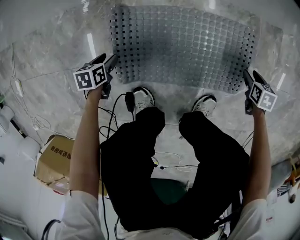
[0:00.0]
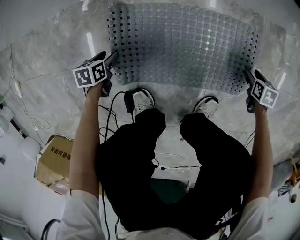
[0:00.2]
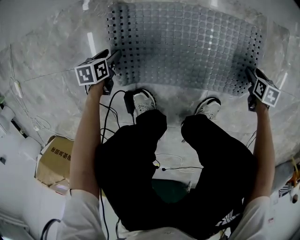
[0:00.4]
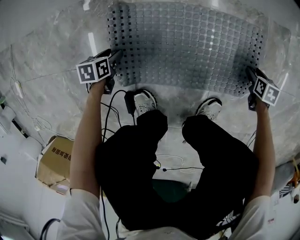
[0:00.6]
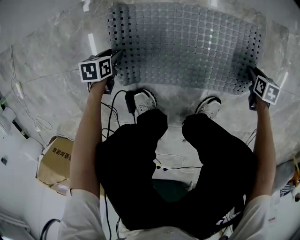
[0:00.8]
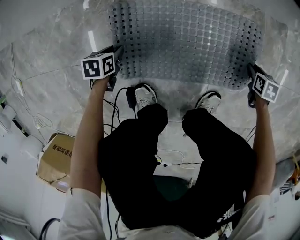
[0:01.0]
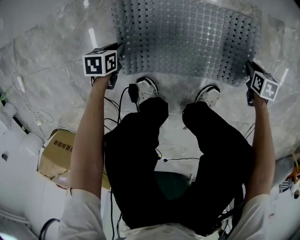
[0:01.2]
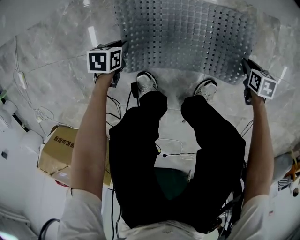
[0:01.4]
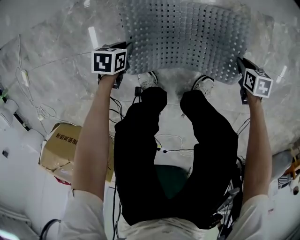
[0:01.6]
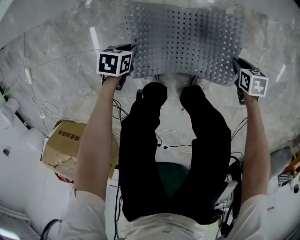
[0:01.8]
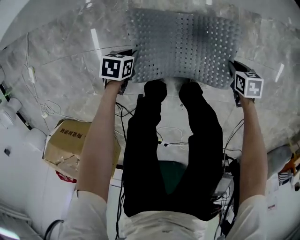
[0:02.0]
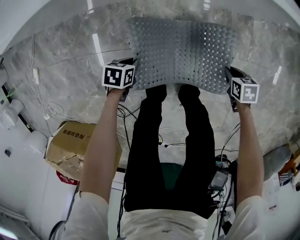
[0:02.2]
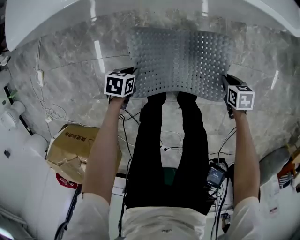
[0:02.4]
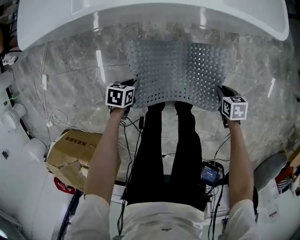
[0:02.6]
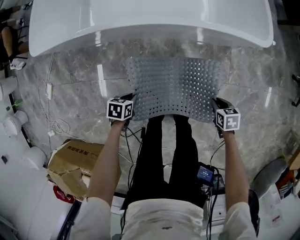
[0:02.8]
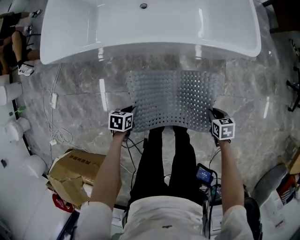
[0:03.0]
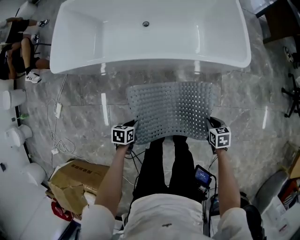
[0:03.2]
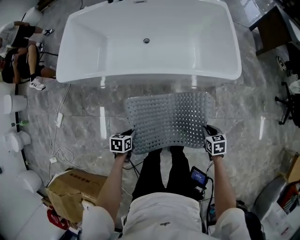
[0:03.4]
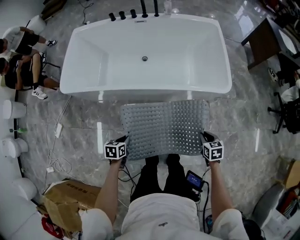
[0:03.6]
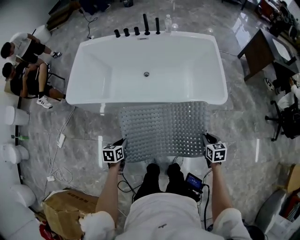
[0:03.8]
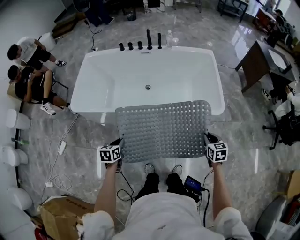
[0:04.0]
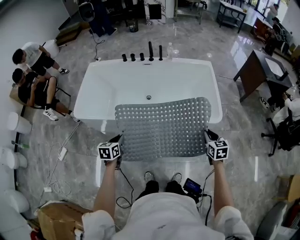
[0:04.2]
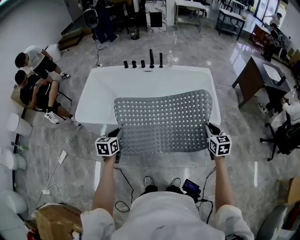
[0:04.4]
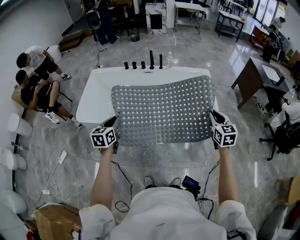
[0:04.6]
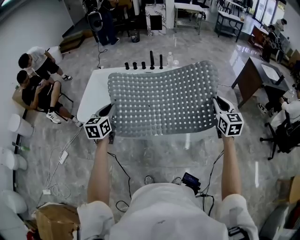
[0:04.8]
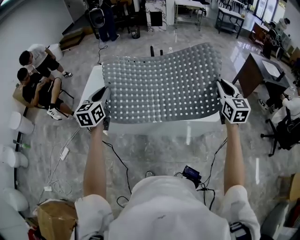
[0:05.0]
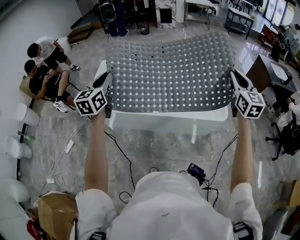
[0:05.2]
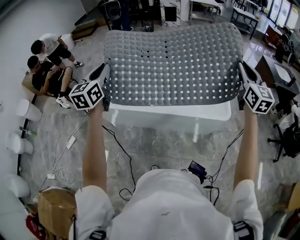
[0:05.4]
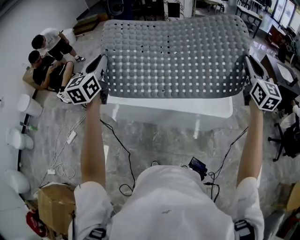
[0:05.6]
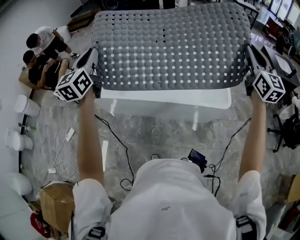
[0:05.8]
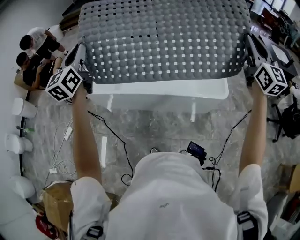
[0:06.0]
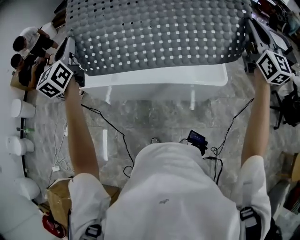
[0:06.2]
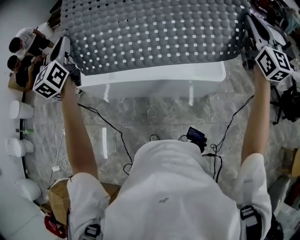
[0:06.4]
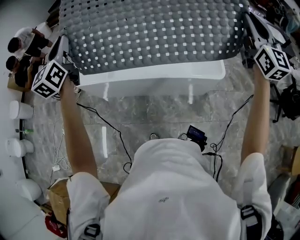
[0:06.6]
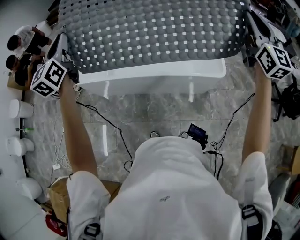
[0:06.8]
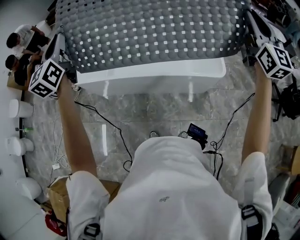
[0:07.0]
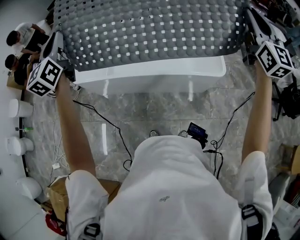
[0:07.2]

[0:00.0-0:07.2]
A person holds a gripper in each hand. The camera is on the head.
0.0 to 1.4 s: The left gripper shifts by approximately 10 cm, and closes up. The right gripper moves approximately 5 cm, and closes.
1.4 to 2.8 s: Both grippers travel together upward, some 40 cm.
2.8 to 4.4 s: The two grippers go approximately 50 cm upward. The right gripper tilts its fingers roughly 40 degrees upward; the left gripper angles its fingers upward, by some 30 degrees.
4.4 to 5.8 s: The two grippers go some 35 cm upward. The right gripper angles its fingers upward, by some 40 degrees, while the left gripper points its fingers roughly 40 degrees further upward.
5.8 to 7.2 s: The grippers stay close to where they were, moving slightly.

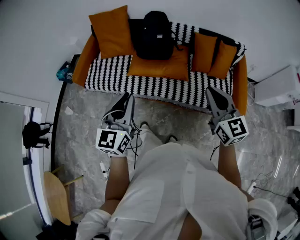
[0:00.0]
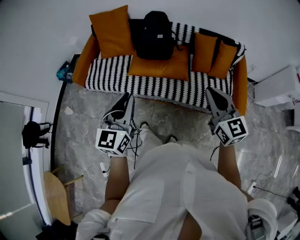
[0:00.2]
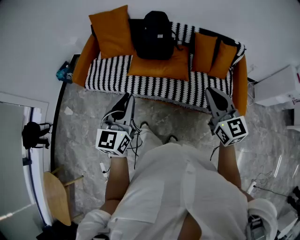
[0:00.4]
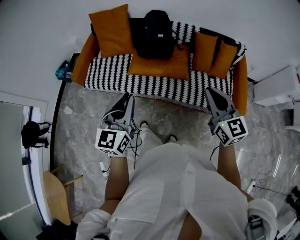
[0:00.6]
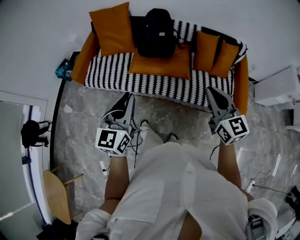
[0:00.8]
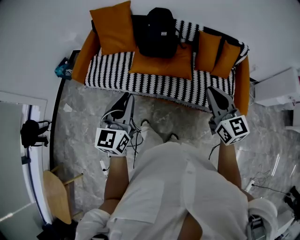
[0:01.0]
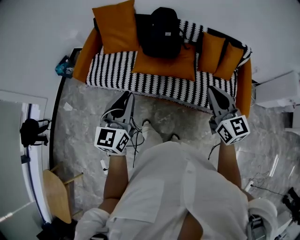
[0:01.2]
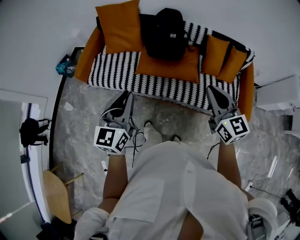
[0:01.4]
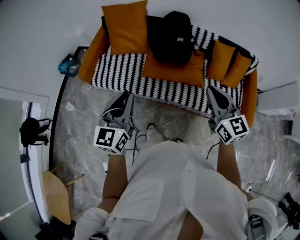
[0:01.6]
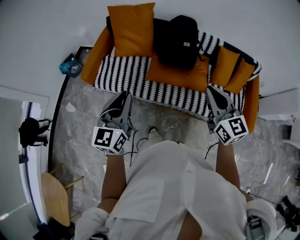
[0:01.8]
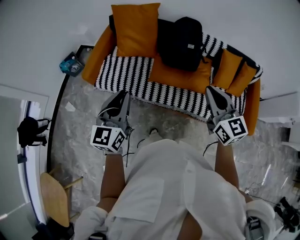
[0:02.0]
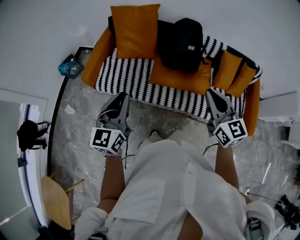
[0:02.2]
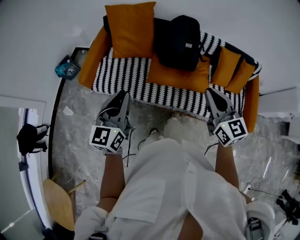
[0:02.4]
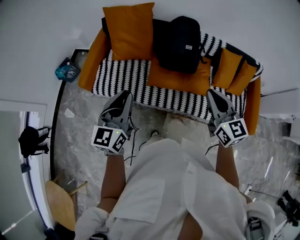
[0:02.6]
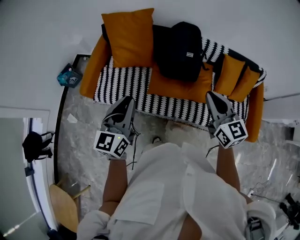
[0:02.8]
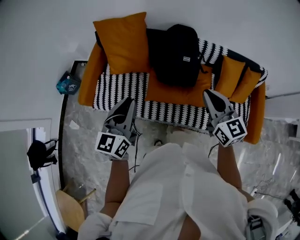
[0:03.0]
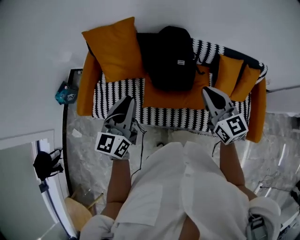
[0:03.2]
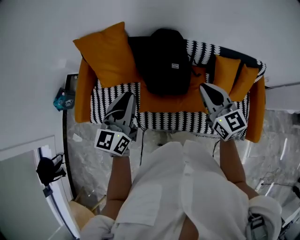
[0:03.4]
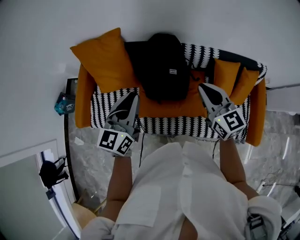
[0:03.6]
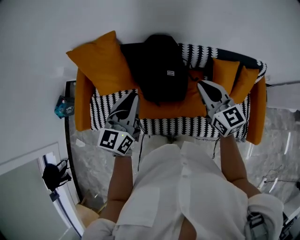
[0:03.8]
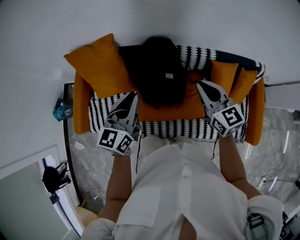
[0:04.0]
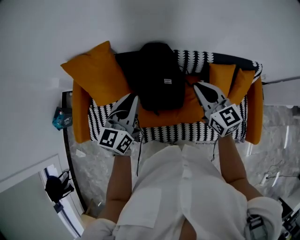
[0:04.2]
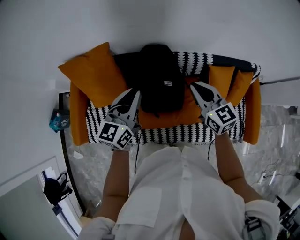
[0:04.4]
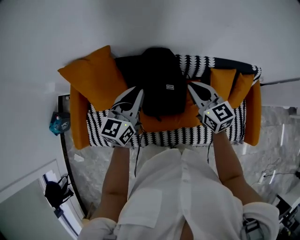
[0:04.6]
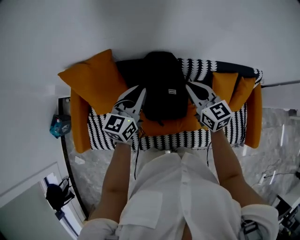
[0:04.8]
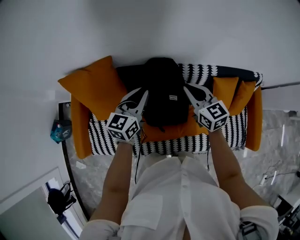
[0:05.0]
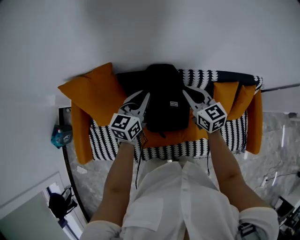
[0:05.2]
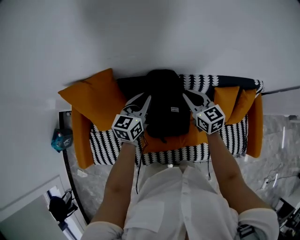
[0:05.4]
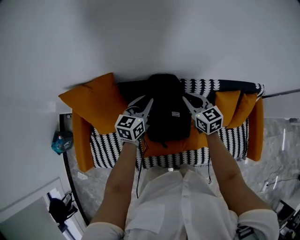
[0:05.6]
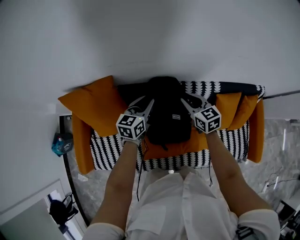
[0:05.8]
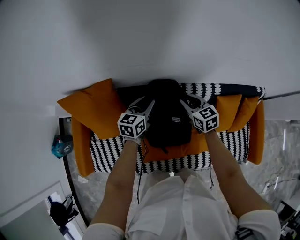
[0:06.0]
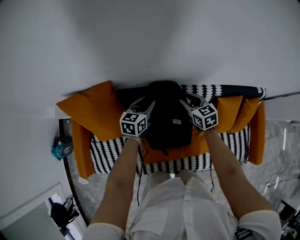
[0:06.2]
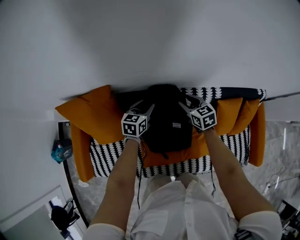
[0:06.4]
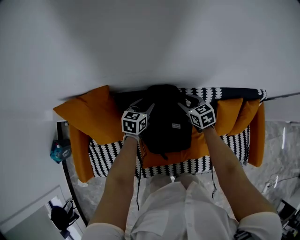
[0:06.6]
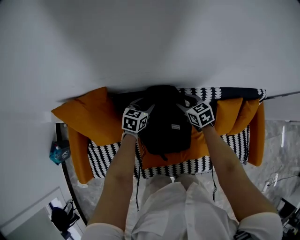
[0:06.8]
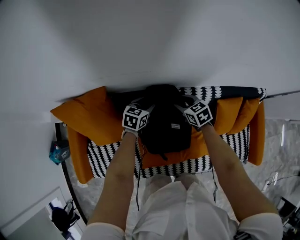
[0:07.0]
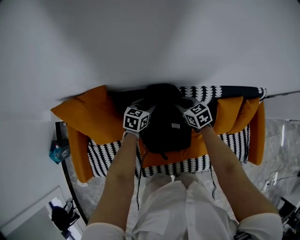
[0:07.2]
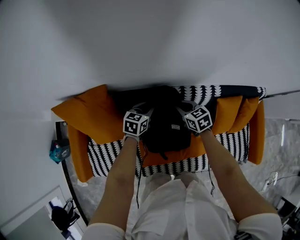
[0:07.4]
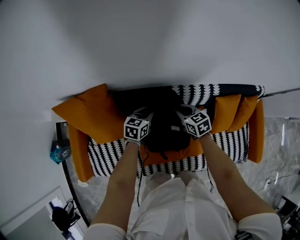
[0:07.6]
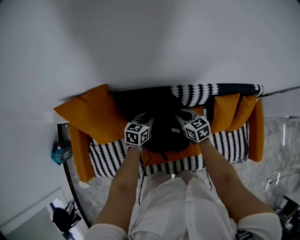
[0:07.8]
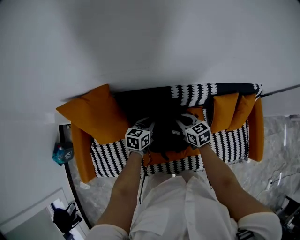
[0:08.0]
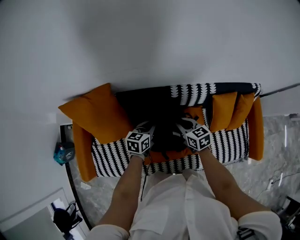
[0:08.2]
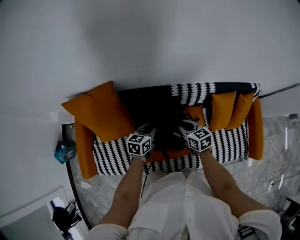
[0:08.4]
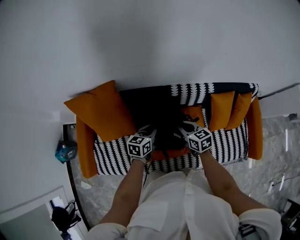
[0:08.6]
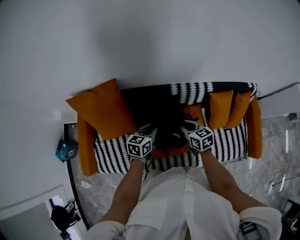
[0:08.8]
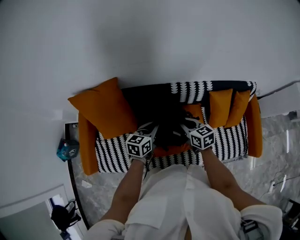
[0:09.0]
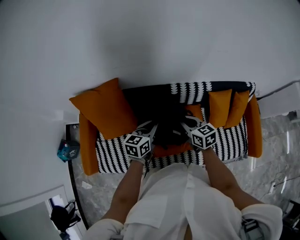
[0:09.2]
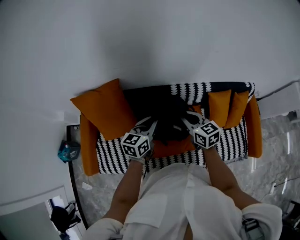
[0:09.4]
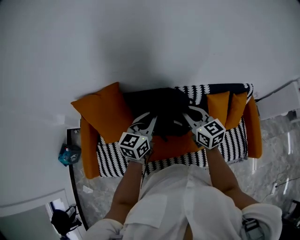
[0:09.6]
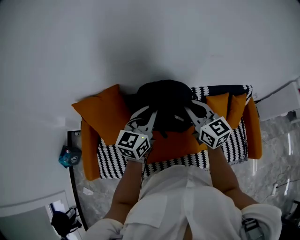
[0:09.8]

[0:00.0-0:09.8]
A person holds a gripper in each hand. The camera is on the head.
0.0 to 1.4 s: The two grippers go roughly 10 cm to the left and forward.
1.4 to 2.8 s: The grippers both shift forward and to the left by some 20 cm.
2.8 to 4.2 s: The right gripper goes about 25 cm forward. The left gripper heads forward and to the right, covering about 35 cm.
4.2 to 5.6 s: The left gripper shifts approximately 25 cm forward and downward. Meanwhile the right gripper moves forward, downward and to the left, roughly 20 cm.
5.6 to 7.0 s: The two grippers go some 15 cm downward and forward. The right gripper opens its fingers. Meanwhile the left gripper turns by about 20 degrees, and opens up.
7.0 to 8.4 s: The two grippers go approximately 15 cm backward. The left gripper closes up. Meanwhile the right gripper closes.
8.4 to 9.8 s: The grippers both shift upward by approximately 25 cm. The right gripper turns by roughly 30 degrees, while the left gripper changes its angle by approximately 30 degrees.

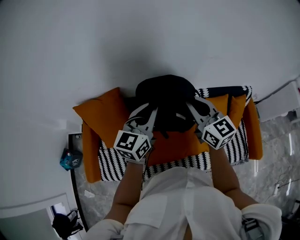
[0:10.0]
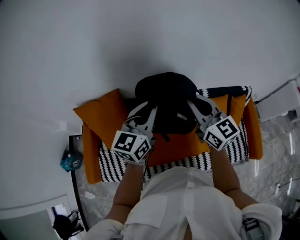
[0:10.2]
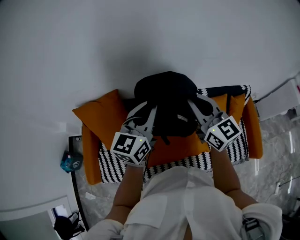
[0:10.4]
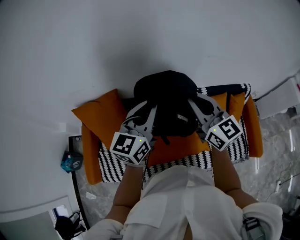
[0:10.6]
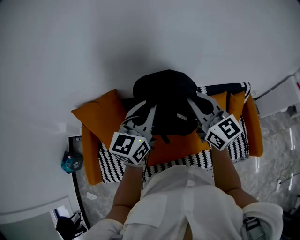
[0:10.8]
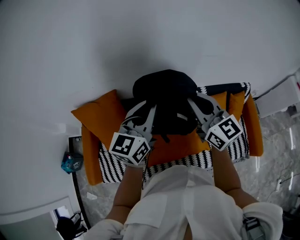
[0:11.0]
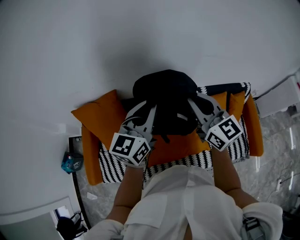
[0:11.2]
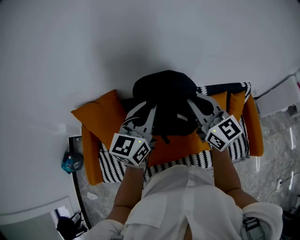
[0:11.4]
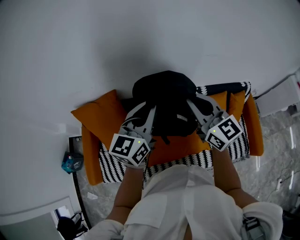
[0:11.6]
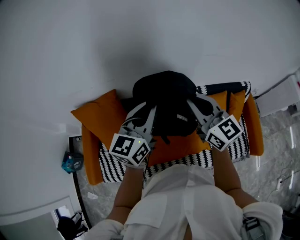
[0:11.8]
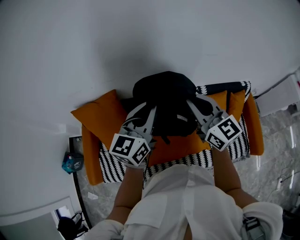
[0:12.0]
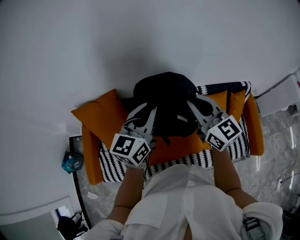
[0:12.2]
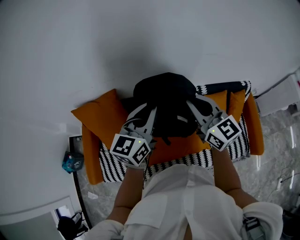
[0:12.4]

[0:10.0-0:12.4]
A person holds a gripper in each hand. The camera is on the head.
10.0 to 12.4 s: The grippers make only small movements.

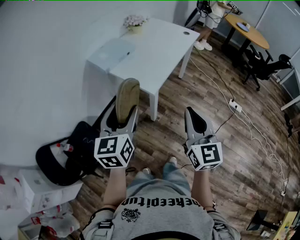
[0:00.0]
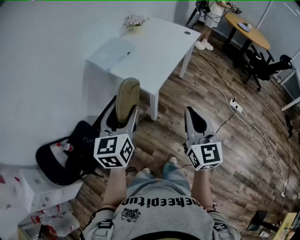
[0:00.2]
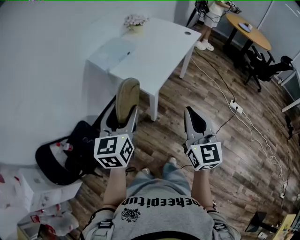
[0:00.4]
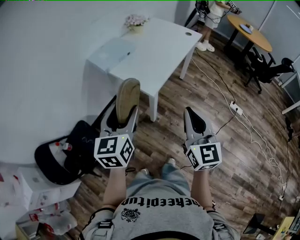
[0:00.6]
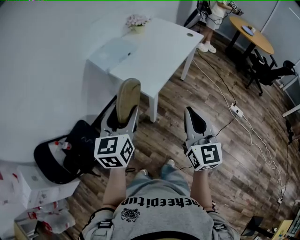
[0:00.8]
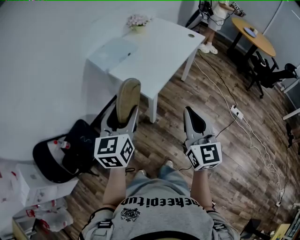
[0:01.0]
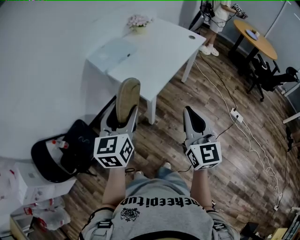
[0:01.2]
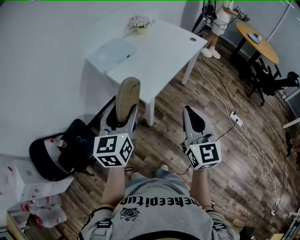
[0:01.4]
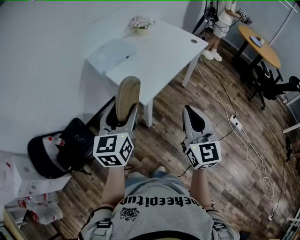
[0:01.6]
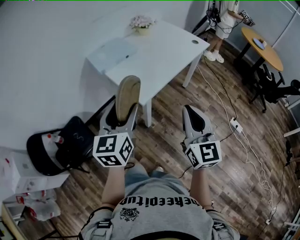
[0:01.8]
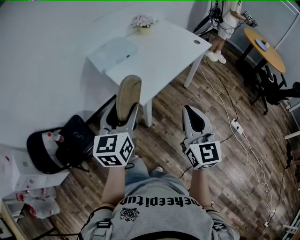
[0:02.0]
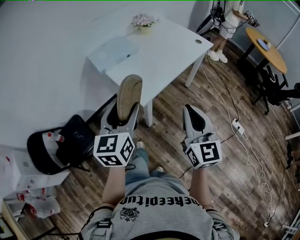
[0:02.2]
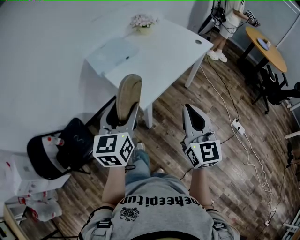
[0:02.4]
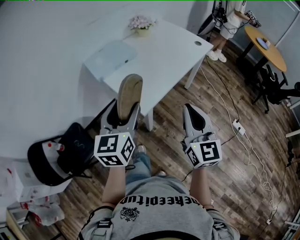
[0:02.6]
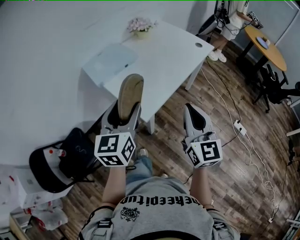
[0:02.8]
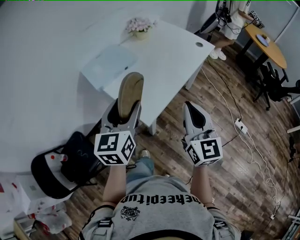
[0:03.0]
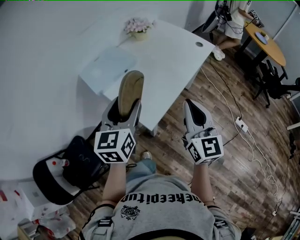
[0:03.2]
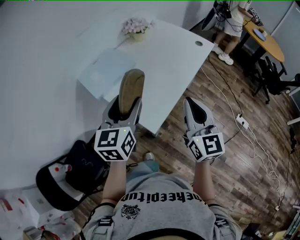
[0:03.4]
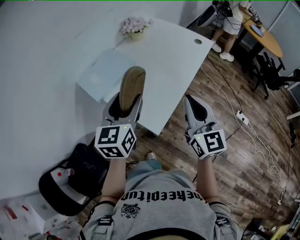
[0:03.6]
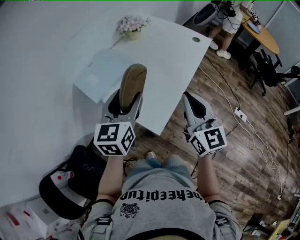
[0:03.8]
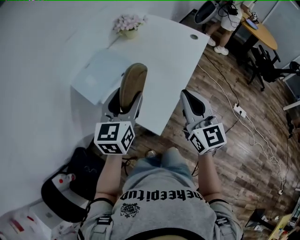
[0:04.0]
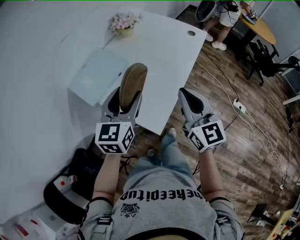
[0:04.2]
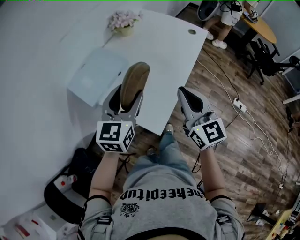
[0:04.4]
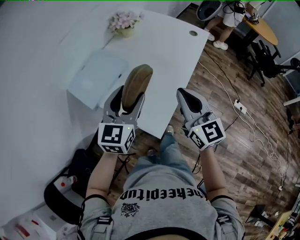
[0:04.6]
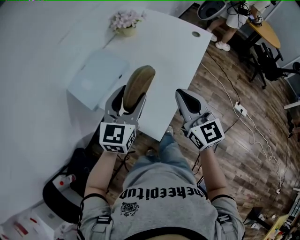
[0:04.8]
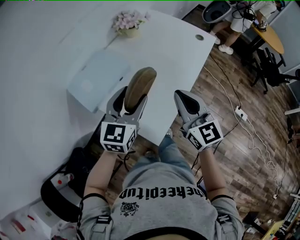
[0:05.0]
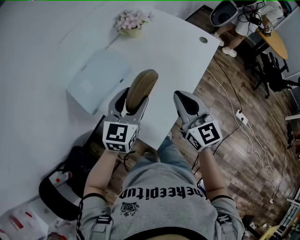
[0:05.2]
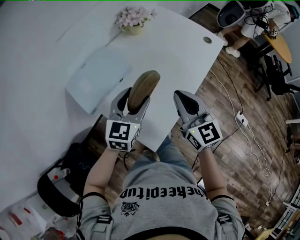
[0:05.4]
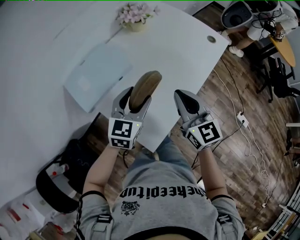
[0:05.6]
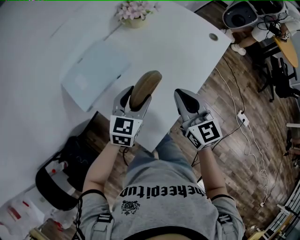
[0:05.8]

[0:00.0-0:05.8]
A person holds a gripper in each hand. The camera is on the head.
0.0 to 1.4 s: The left gripper moves to the right and forward, some 10 cm, while the right gripper travels forward and to the right by some 10 cm.
1.4 to 2.8 s: Both grippers move forward, some 10 cm.
2.8 to 4.4 s: The right gripper shifts some 15 cm forward and to the left, while the left gripper is displaced forward by some 20 cm, and swivels roughly 20 degrees.
4.4 to 5.8 s: The right gripper moves forward and downward, approximately 15 cm; the left gripper heads downward and forward, covering approximately 15 cm.
